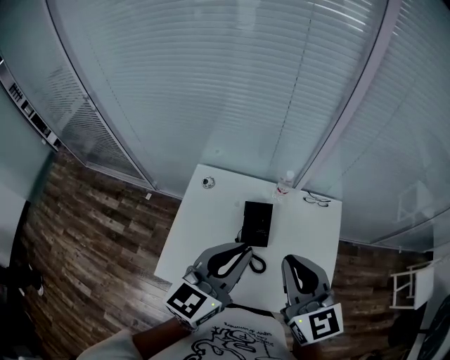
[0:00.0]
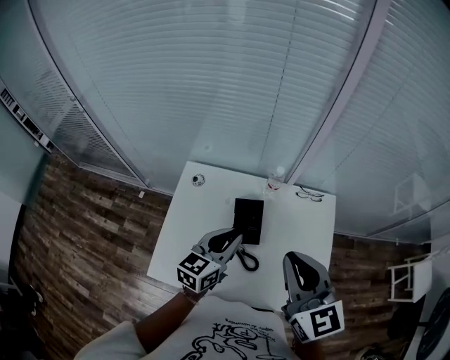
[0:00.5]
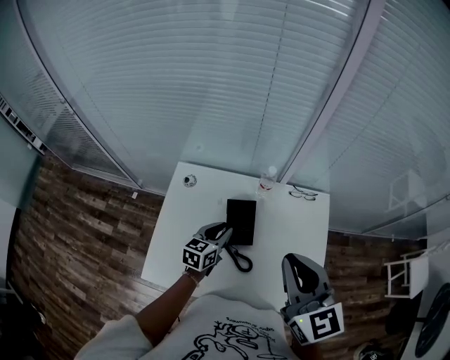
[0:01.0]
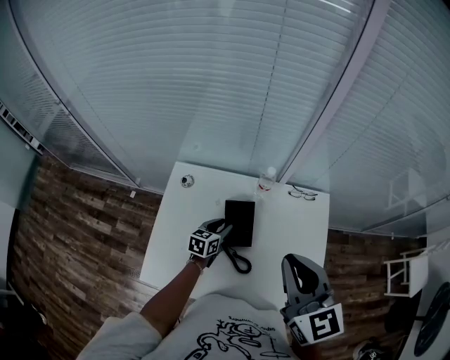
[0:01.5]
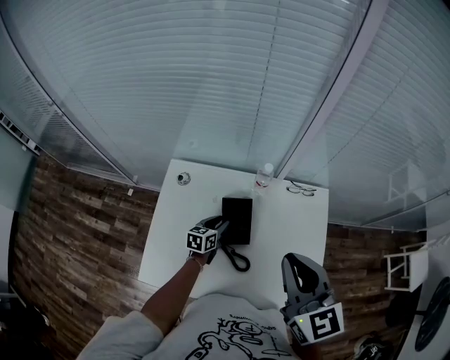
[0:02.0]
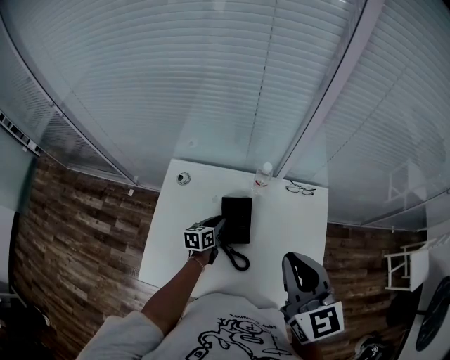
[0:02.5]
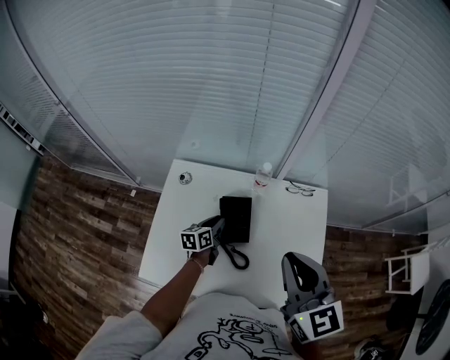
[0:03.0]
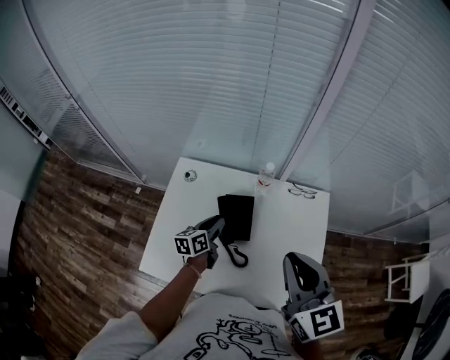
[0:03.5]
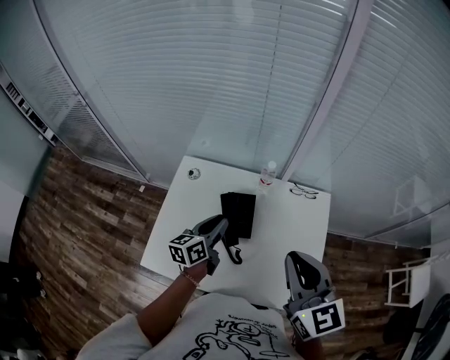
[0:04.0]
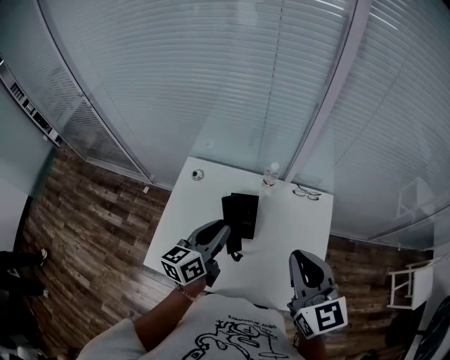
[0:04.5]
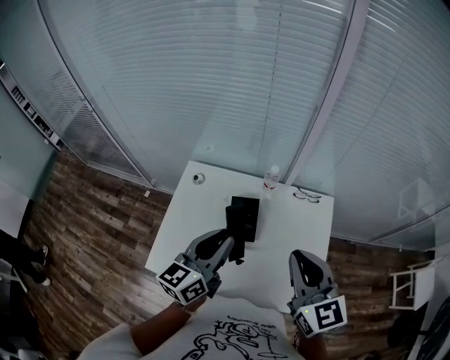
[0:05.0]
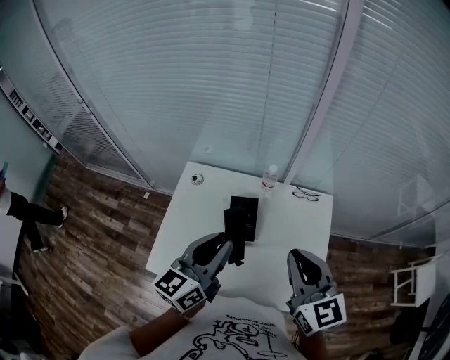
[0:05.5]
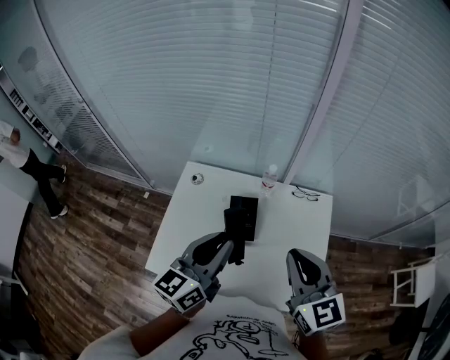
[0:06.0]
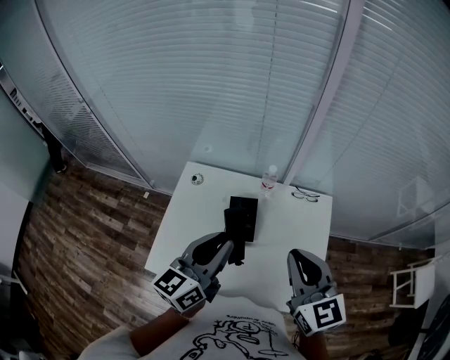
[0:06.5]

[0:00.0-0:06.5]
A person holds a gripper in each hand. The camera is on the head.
0:00.0 to 0:02.0: The left gripper goes about 40 cm downward and forward, swivels approximately 40 degrees, and opens, while the right gripper heads to the right, covering about 5 cm.
0:02.0 to 0:04.5: The left gripper moves upward, some 25 cm, and changes its angle by roughly 30 degrees. The right gripper moves about 5 cm.
0:04.5 to 0:06.5: The left gripper shifts roughly 10 cm upward.

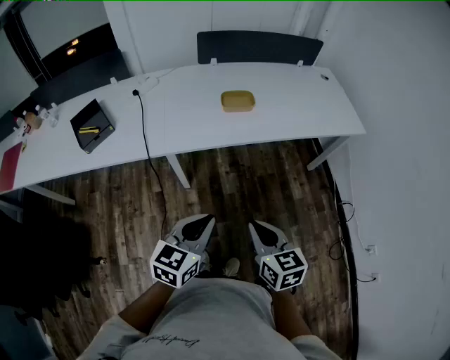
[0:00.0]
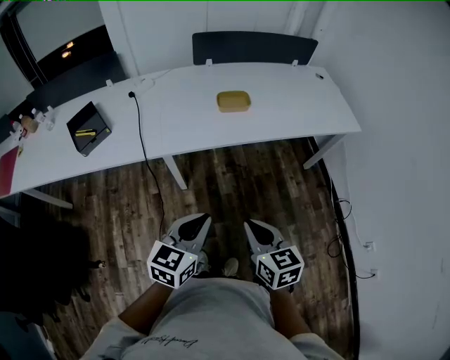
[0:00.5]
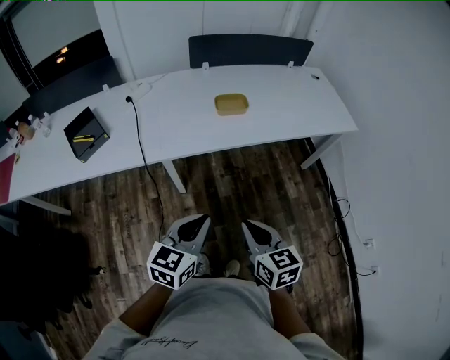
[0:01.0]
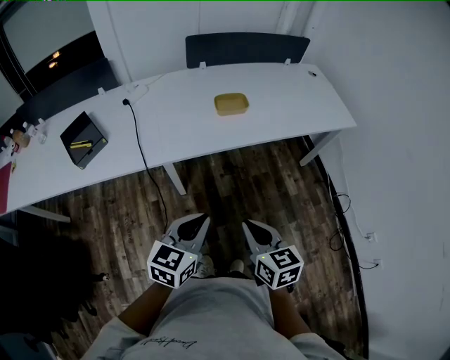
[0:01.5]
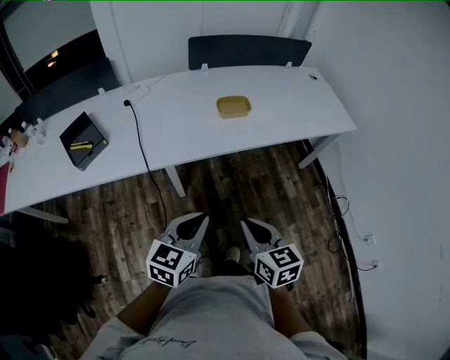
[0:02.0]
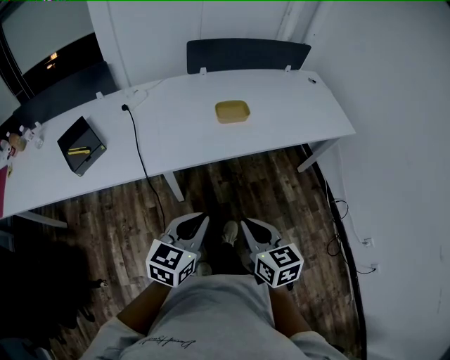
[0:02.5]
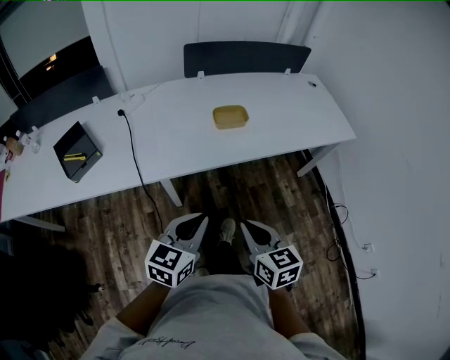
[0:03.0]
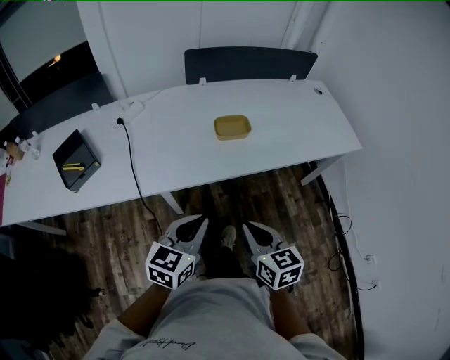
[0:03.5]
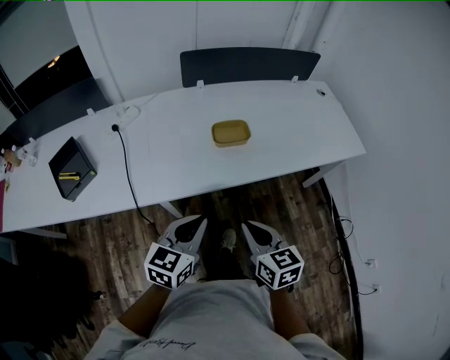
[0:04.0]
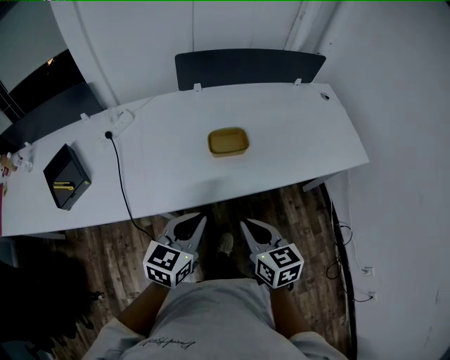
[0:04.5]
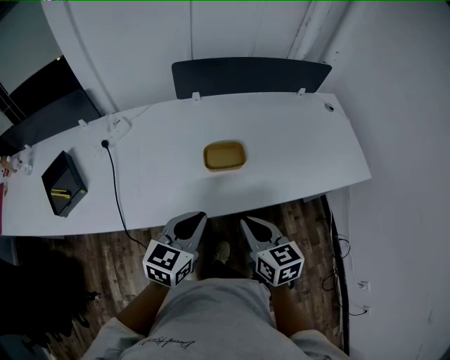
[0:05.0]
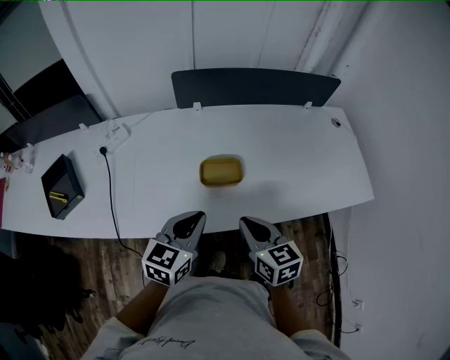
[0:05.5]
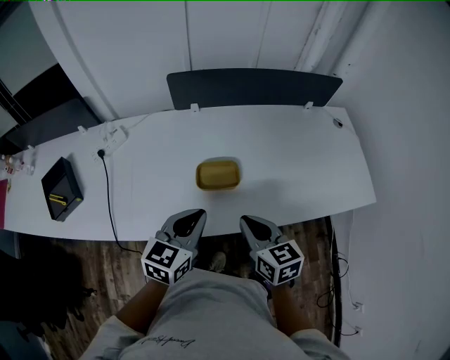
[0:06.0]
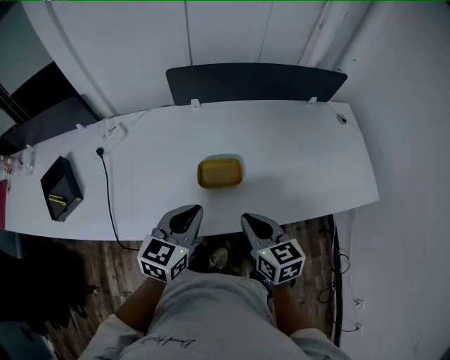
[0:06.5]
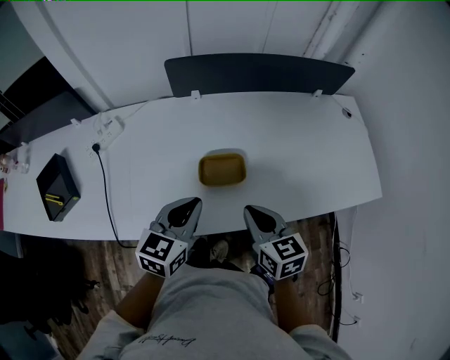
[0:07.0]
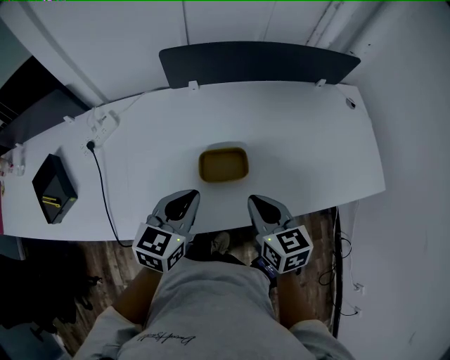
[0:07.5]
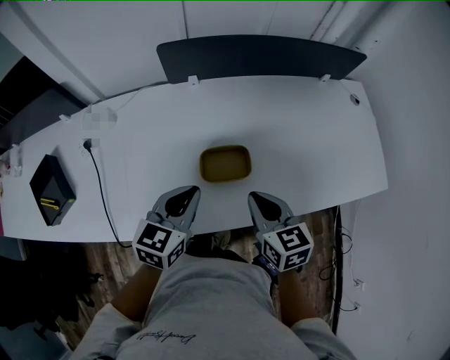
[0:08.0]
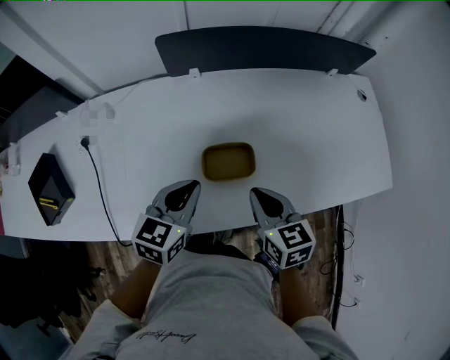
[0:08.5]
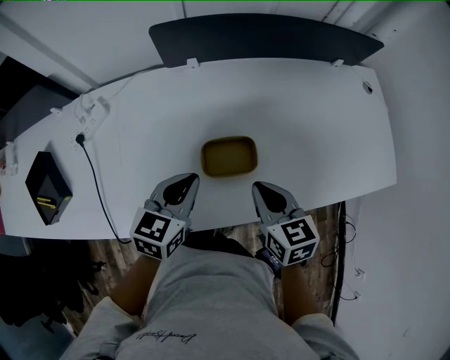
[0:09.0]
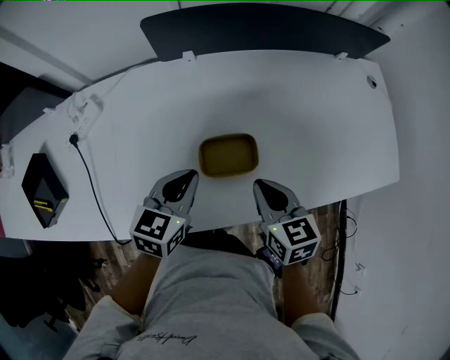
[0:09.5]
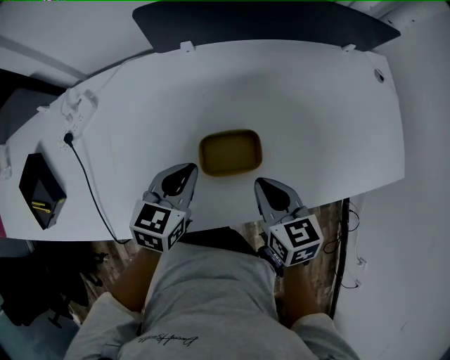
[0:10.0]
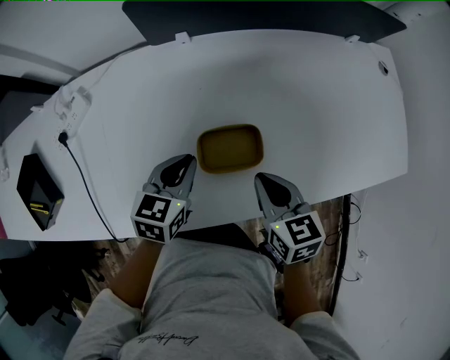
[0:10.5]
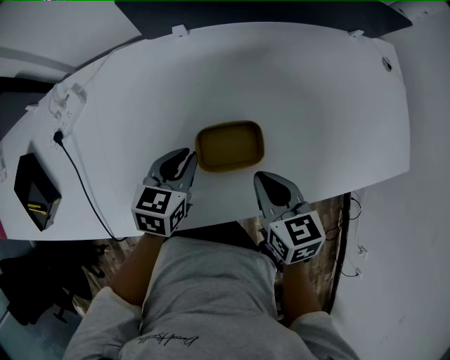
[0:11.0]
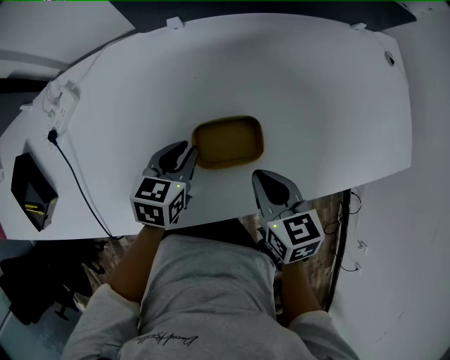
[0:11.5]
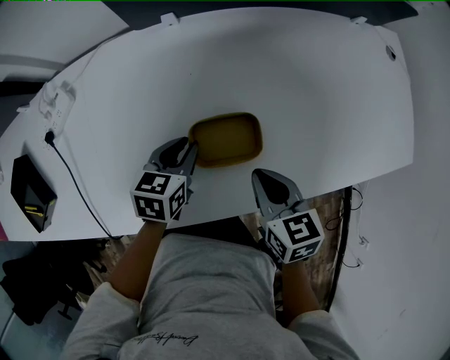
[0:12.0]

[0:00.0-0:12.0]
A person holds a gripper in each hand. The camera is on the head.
0:00.0 to 0:02.0: The two grippers go about 5 cm to the left.
0:02.0 to 0:04.0: Both grippers move forward, about 15 cm.
0:04.0 to 0:06.0: The left gripper is displaced forward and to the right by about 25 cm. The right gripper heads forward, covering approximately 25 cm.
0:06.0 to 0:08.0: The two grippers go some 10 cm forward.
0:08.0 to 0:10.0: The left gripper is displaced downward and forward by about 10 cm, while the right gripper heads downward, covering some 5 cm.
0:10.0 to 0:12.0: The left gripper moves downward, about 10 cm, and opens up.

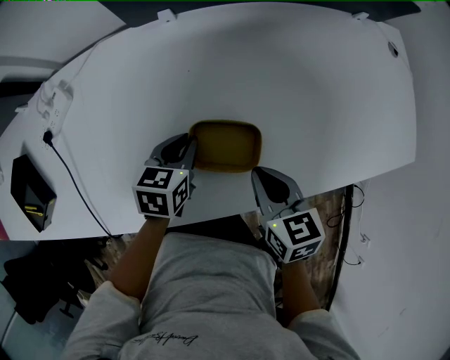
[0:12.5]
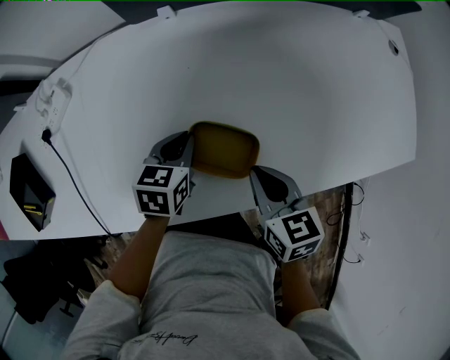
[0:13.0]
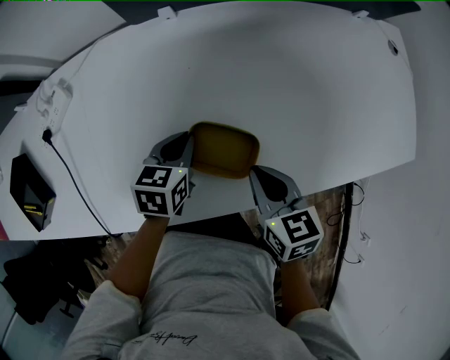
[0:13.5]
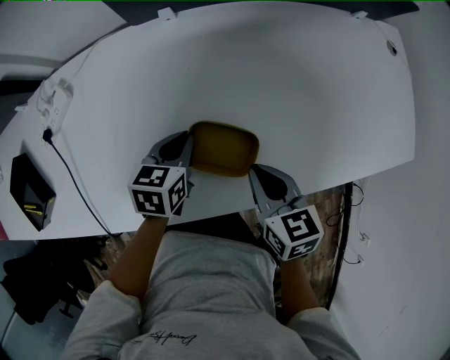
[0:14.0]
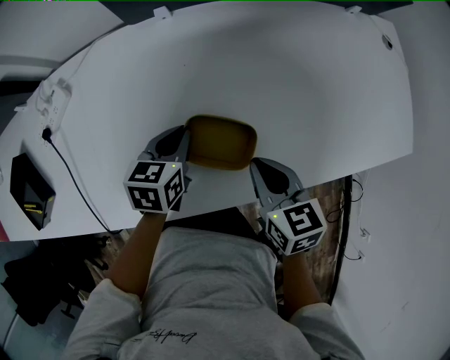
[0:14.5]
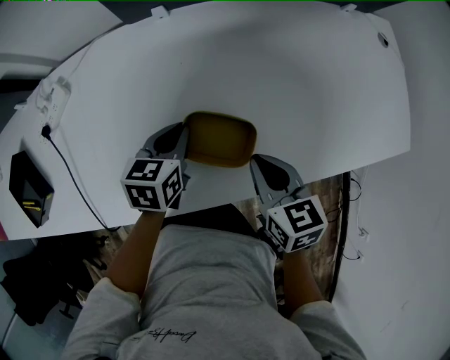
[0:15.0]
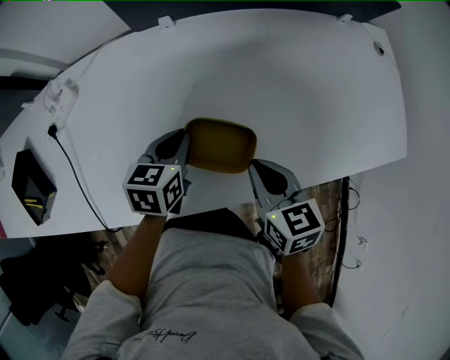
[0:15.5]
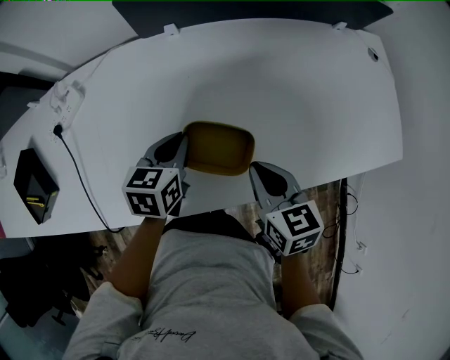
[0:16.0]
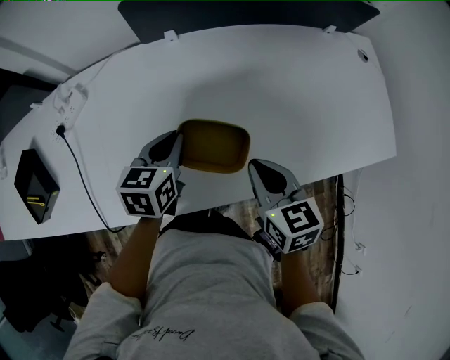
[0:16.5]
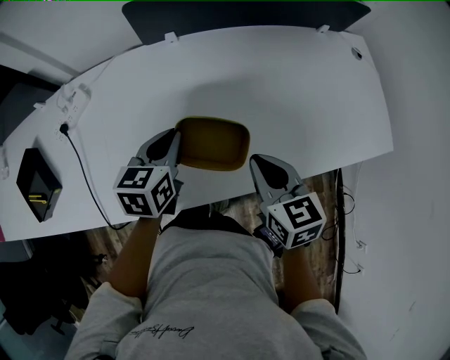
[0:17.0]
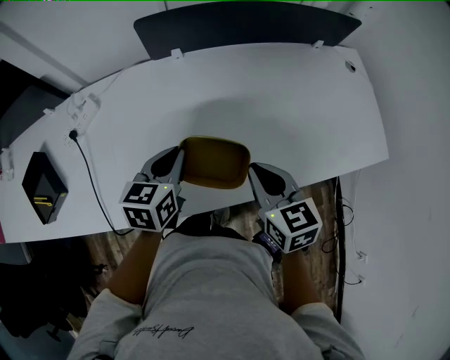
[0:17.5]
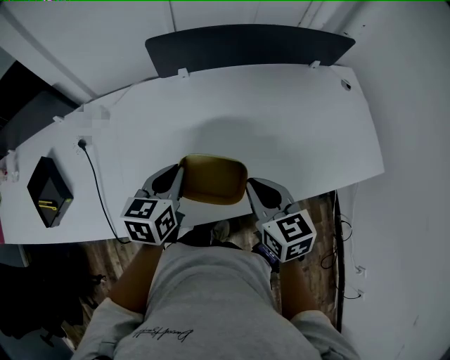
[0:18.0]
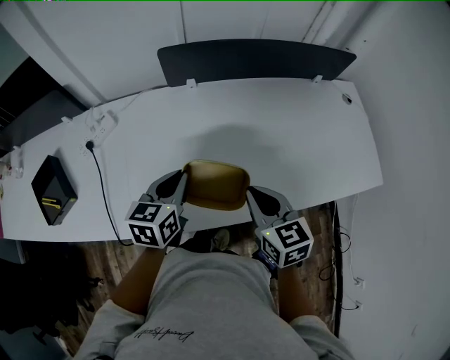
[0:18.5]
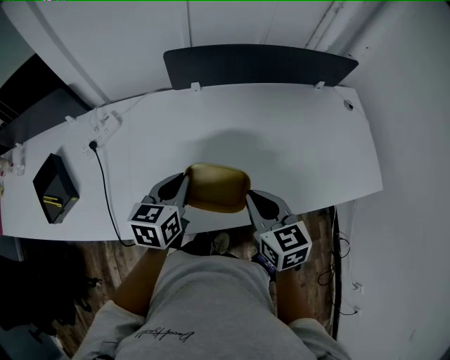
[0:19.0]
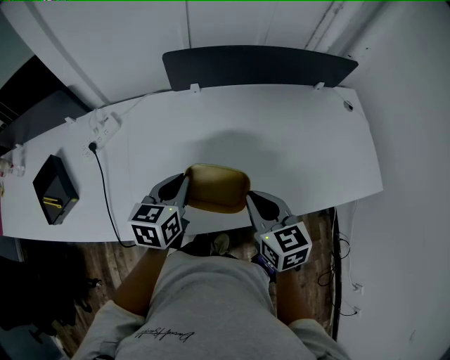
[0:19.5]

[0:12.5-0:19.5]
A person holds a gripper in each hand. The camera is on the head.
0:12.5 to 0:14.5: The grippers stay close to where they were, moving slightly.
0:14.5 to 0:16.0: The left gripper heads upward, covering roughly 5 cm.
0:16.0 to 0:17.5: The grippers both shift upward by about 5 cm.
0:17.5 to 0:19.5: The grippers move only a little.

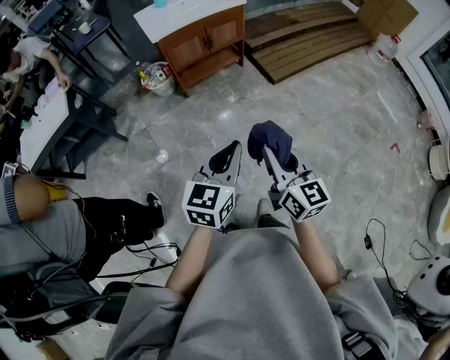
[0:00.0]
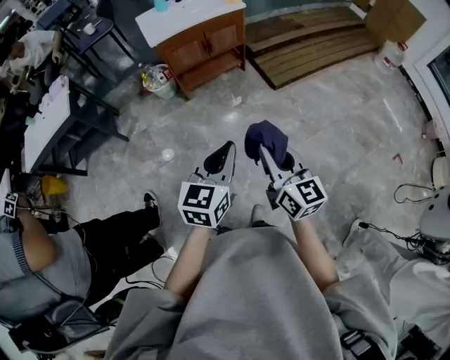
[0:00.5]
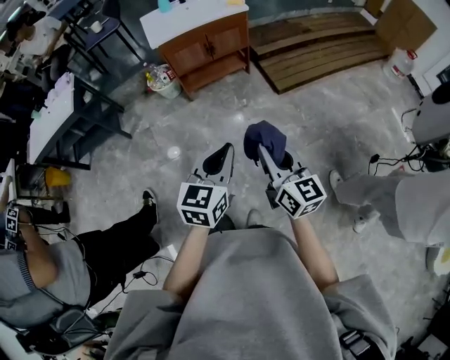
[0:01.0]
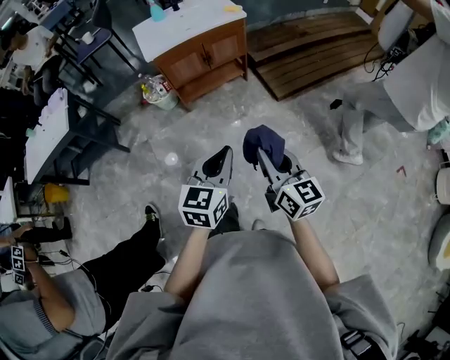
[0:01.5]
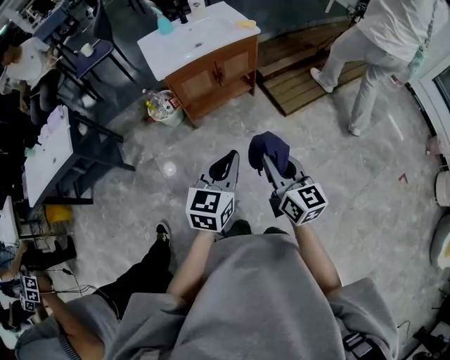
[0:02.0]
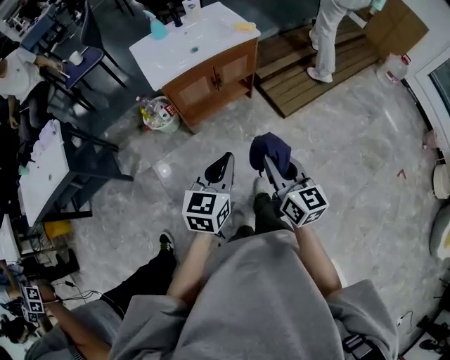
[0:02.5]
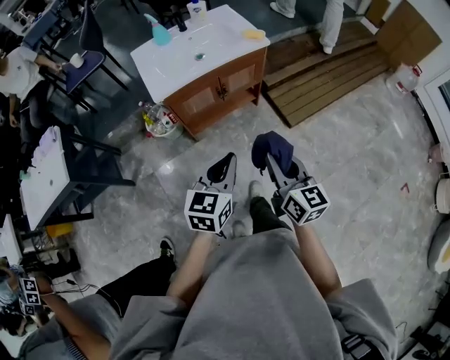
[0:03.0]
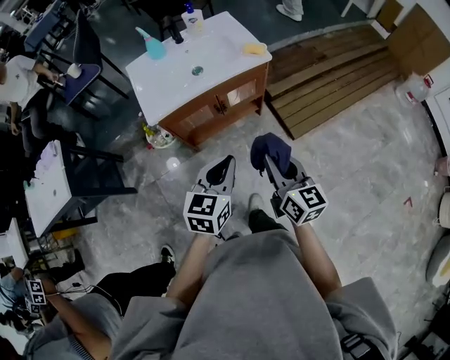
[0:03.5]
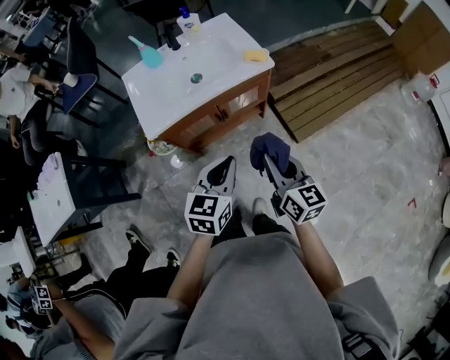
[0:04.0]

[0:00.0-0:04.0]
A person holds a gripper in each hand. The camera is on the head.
0:00.0 to 0:02.0: The two grippers go some 25 cm forward.
0:02.0 to 0:04.0: The two grippers go some 35 cm forward.